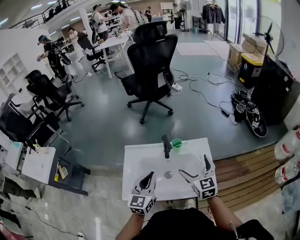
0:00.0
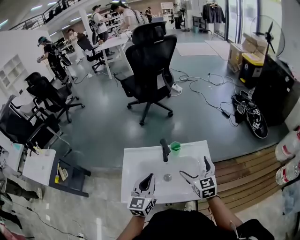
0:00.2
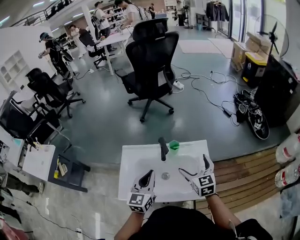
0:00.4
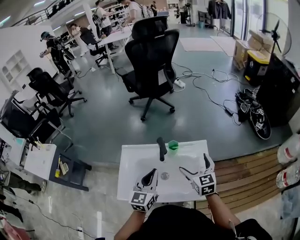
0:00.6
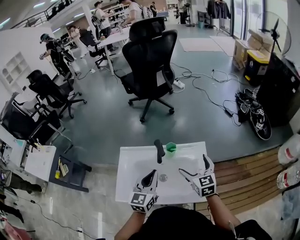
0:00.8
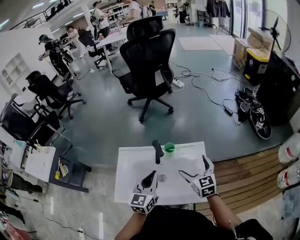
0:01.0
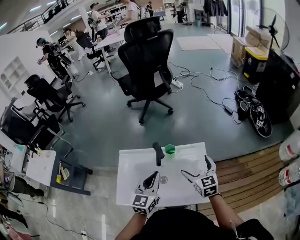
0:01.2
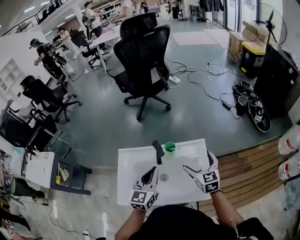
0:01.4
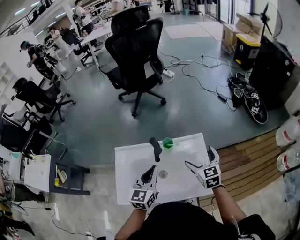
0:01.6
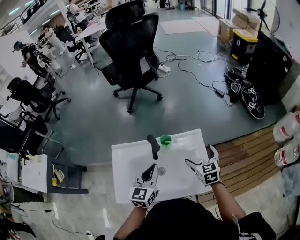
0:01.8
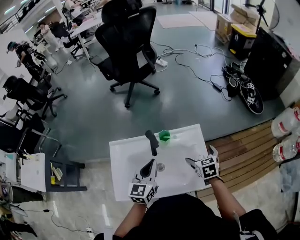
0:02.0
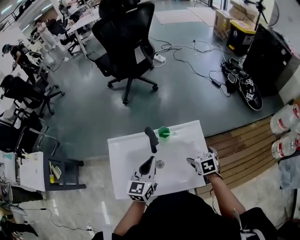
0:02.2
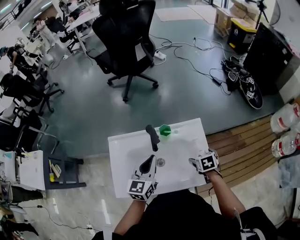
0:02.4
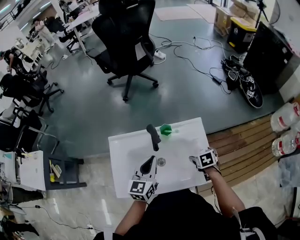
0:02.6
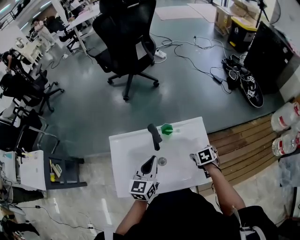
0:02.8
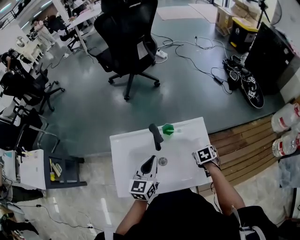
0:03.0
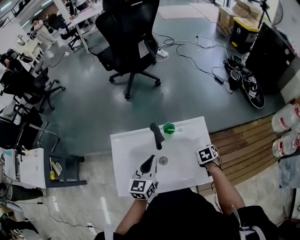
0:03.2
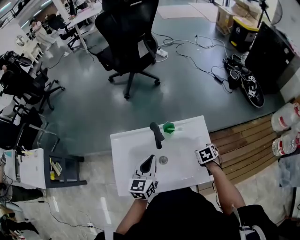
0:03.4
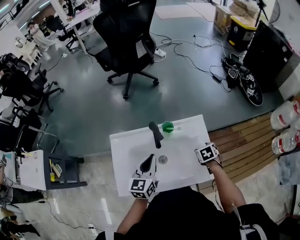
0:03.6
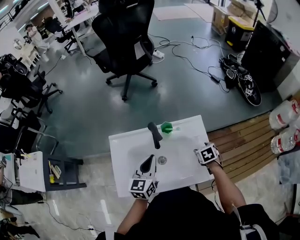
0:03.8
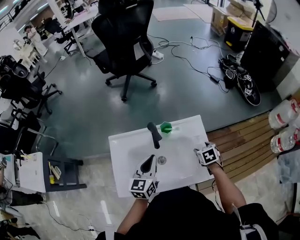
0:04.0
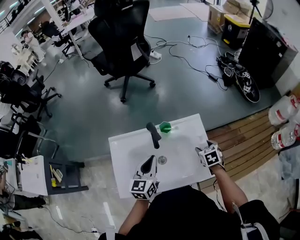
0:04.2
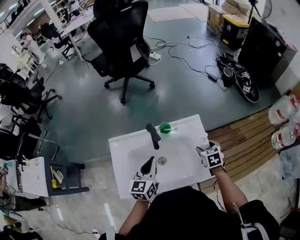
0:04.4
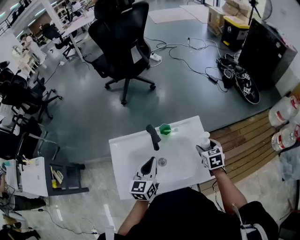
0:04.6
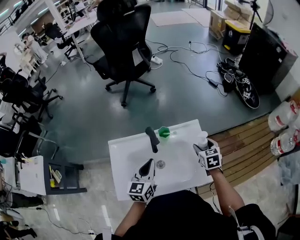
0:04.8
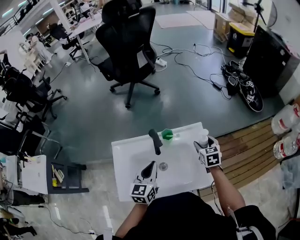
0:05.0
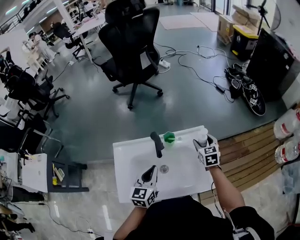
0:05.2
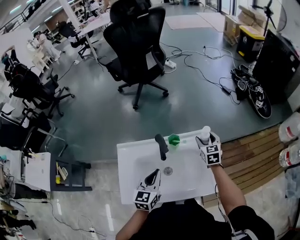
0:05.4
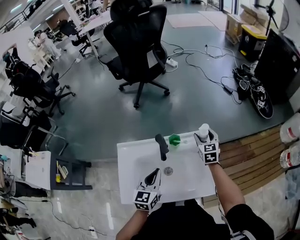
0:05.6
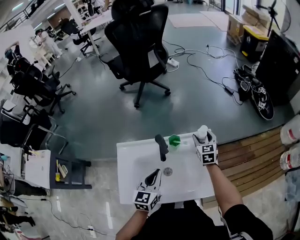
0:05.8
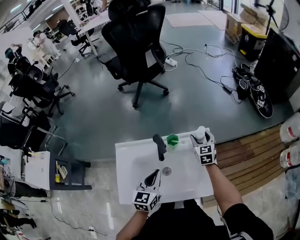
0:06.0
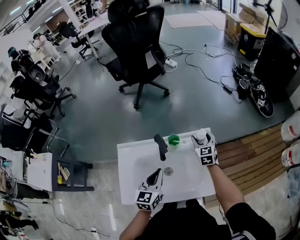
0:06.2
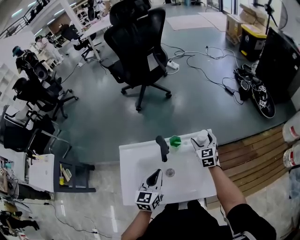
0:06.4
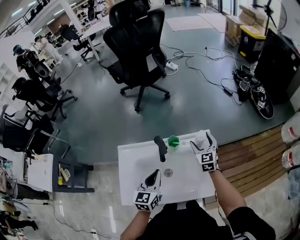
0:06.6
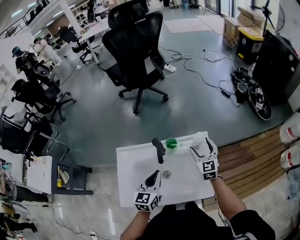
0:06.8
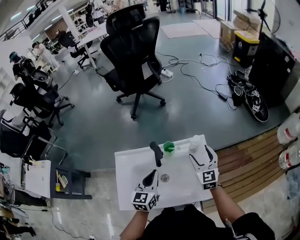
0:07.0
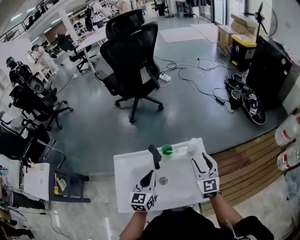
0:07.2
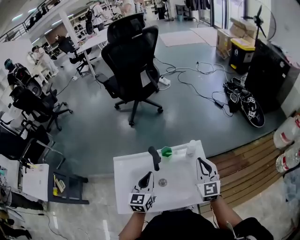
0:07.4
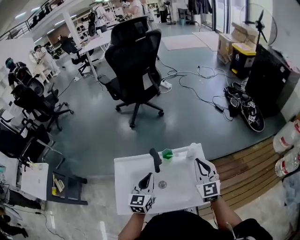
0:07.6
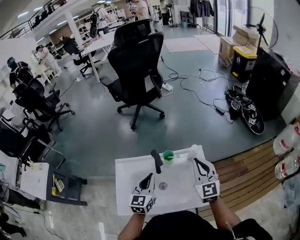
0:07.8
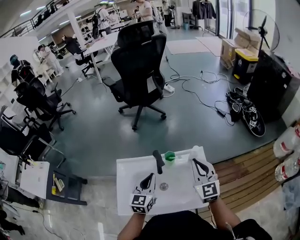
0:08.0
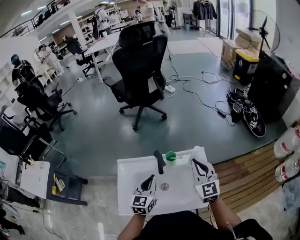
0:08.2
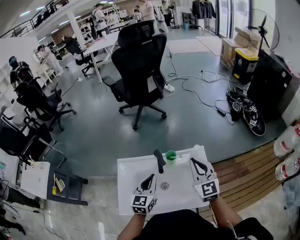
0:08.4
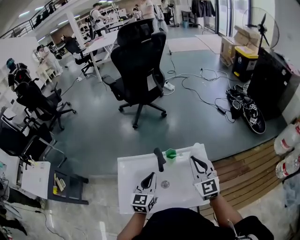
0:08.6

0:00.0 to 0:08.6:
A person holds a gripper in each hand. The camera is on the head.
0:00.0 to 0:01.4: The right gripper travels to the right and forward by roughly 10 cm. The left gripper heads forward and to the right, covering some 10 cm.
0:01.4 to 0:02.8: The right gripper goes some 20 cm downward, and points its fingers roughly 40 degrees further downward. The left gripper moves downward, about 10 cm.
0:02.8 to 0:04.4: The right gripper shifts some 5 cm upward.
0:04.4 to 0:05.8: The right gripper heads forward, covering some 15 cm, and changes its angle by roughly 30 degrees.
0:05.8 to 0:07.2: The right gripper shifts approximately 20 cm backward and upward.
0:07.2 to 0:08.6: The right gripper shifts some 10 cm upward and to the left, and closes its fingers.

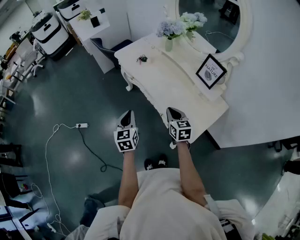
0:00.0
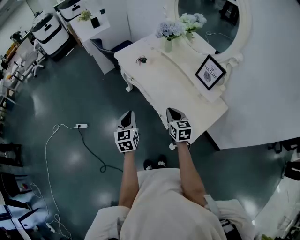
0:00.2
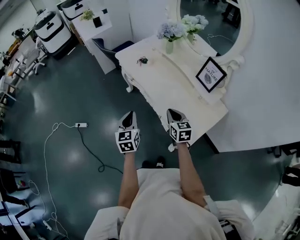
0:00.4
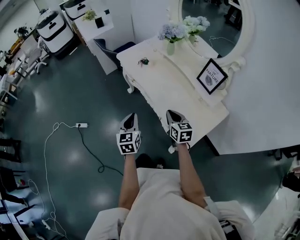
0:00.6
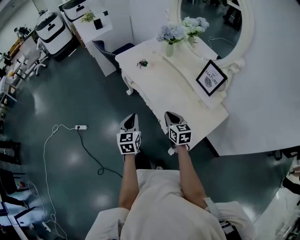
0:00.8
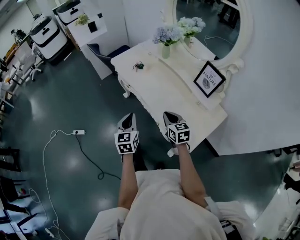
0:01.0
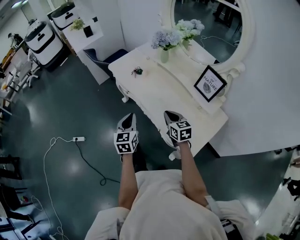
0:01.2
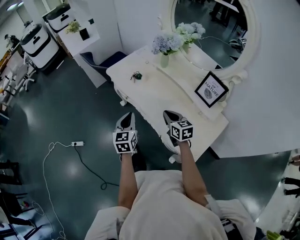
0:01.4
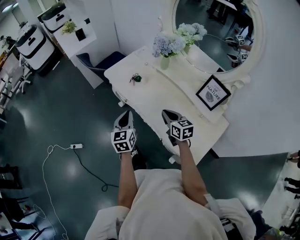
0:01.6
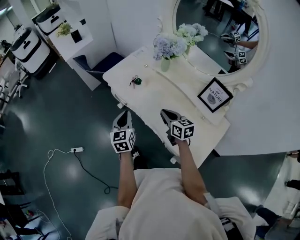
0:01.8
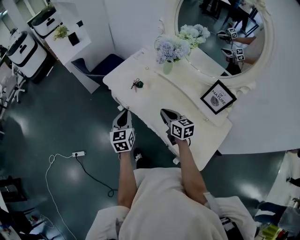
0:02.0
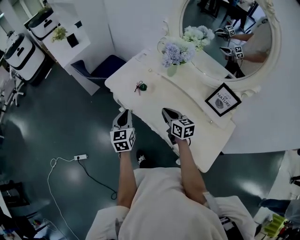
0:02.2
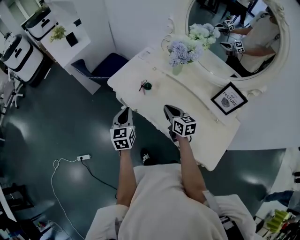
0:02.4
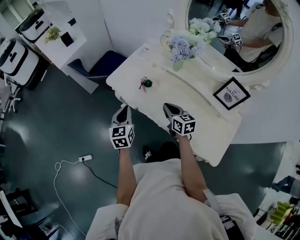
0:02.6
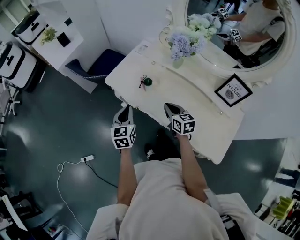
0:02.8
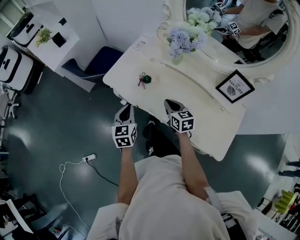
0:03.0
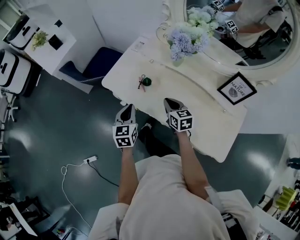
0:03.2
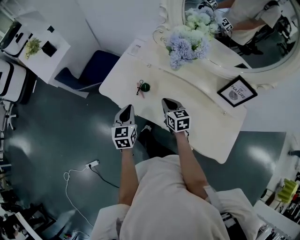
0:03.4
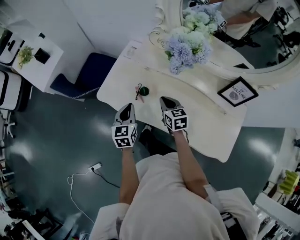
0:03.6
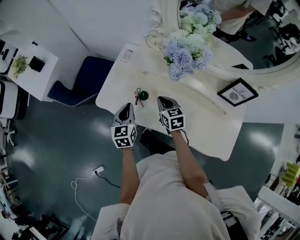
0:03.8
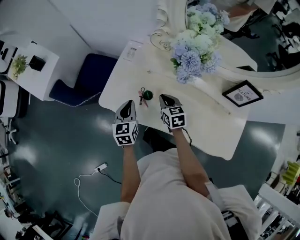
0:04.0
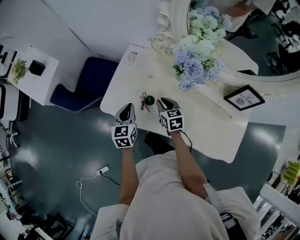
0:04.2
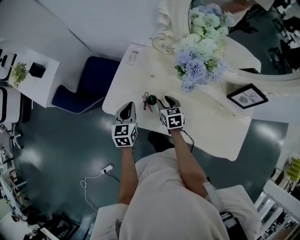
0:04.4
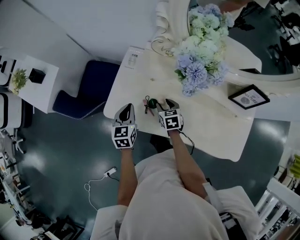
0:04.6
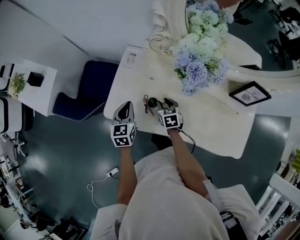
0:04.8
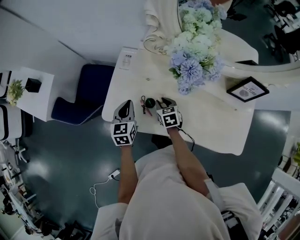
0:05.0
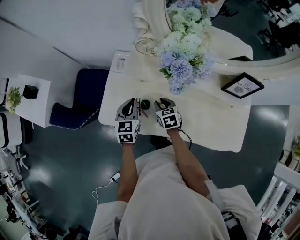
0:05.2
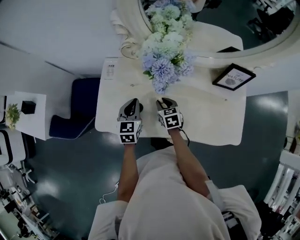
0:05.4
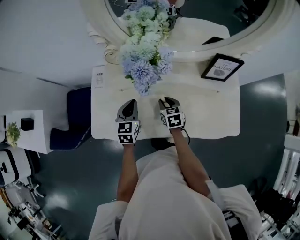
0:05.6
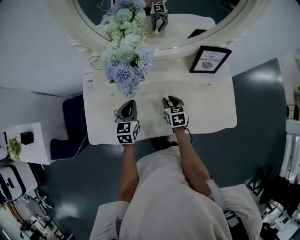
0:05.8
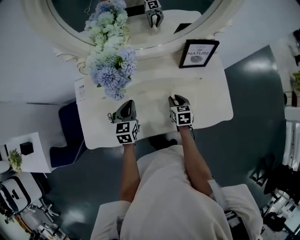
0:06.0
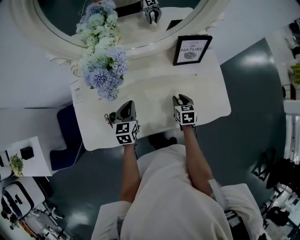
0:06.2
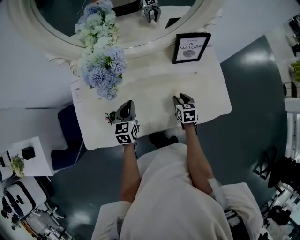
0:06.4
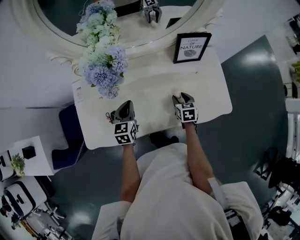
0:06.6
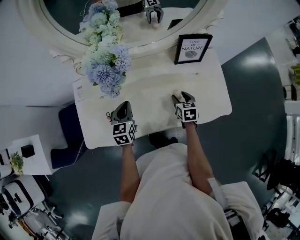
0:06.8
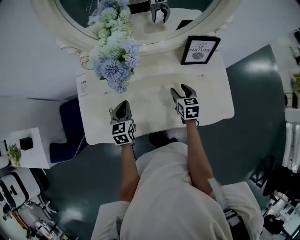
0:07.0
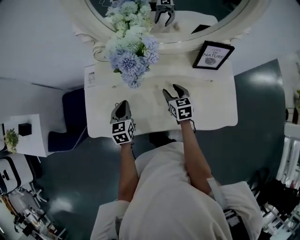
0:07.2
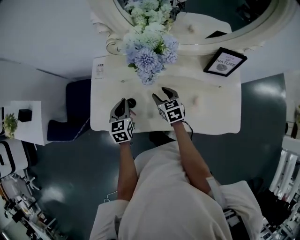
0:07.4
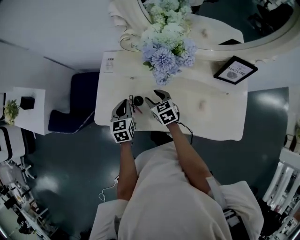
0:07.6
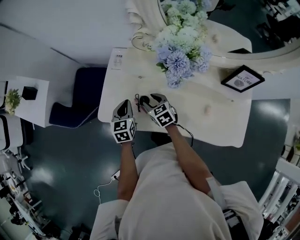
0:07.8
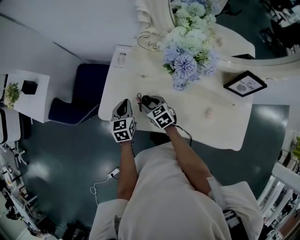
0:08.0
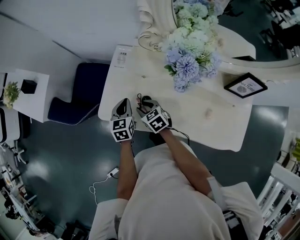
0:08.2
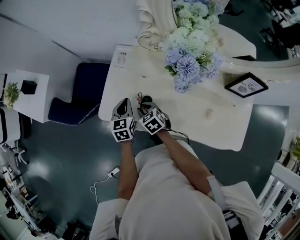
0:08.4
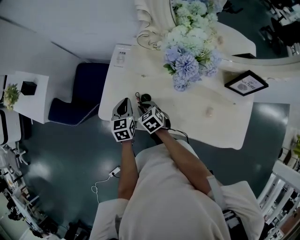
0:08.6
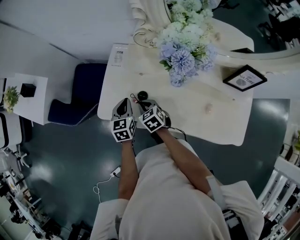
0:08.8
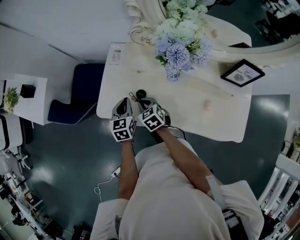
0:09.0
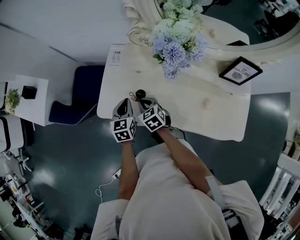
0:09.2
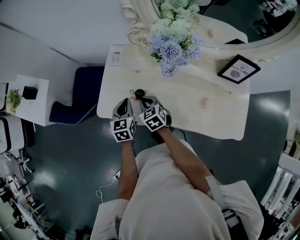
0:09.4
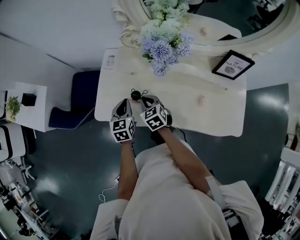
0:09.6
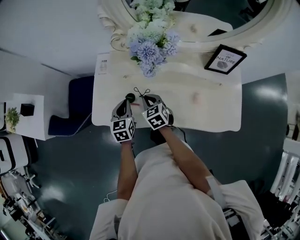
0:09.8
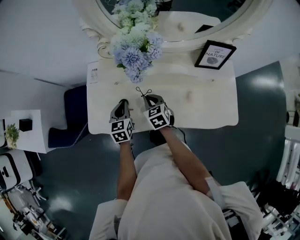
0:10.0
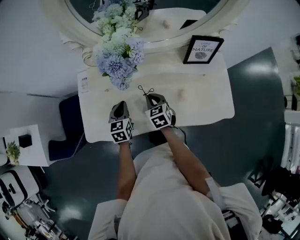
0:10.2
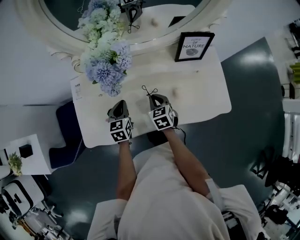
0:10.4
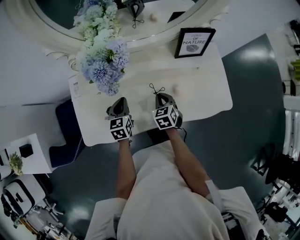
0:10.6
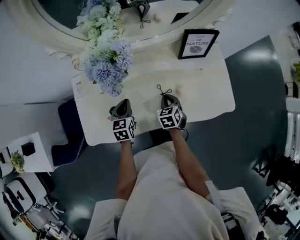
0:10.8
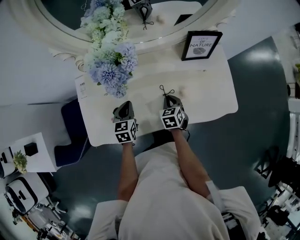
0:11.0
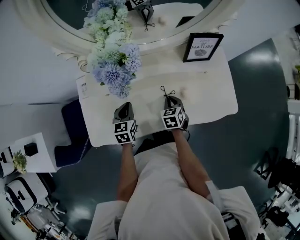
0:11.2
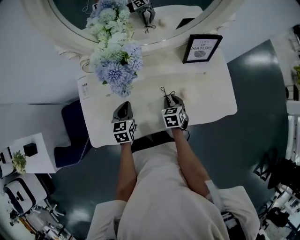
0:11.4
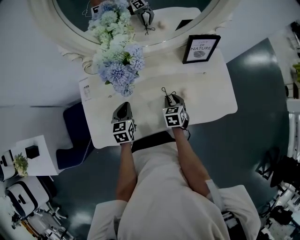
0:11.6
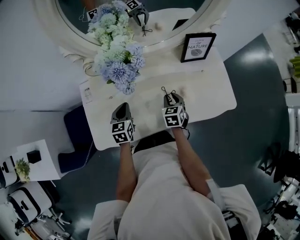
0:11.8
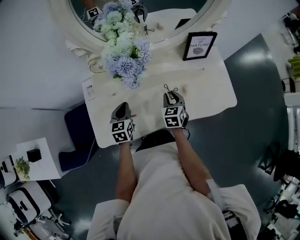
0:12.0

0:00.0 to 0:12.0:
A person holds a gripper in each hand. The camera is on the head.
0:00.0 to 0:01.6: Both grippers travel together forward, roughly 20 cm.
0:01.6 to 0:03.0: The left gripper goes some 20 cm forward and to the left. Meanwhile the right gripper is displaced forward, to the left and downward by some 20 cm.
0:03.0 to 0:04.4: The left gripper is displaced forward by approximately 20 cm; the right gripper heads forward and downward, covering about 20 cm, and opens.
0:04.4 to 0:06.0: The right gripper moves roughly 30 cm, and rotates roughly 40 degrees, while the left gripper moves about 25 cm, and changes its angle by some 30 degrees.
0:06.0 to 0:07.6: The right gripper moves approximately 30 cm, changes its angle by roughly 40 degrees, and opens its fingers; the left gripper moves some 20 cm, and turns by roughly 20 degrees.
0:07.6 to 0:09.0: The right gripper is displaced to the left by approximately 10 cm, and closes its fingers.
0:09.0 to 0:10.4: The right gripper changes place by approximately 25 cm, and swivels about 40 degrees. The left gripper ends up about 20 cm from where it was, and turns by about 20 degrees.
0:10.4 to 0:12.0: The right gripper opens, while the left gripper travels to the left by about 5 cm.

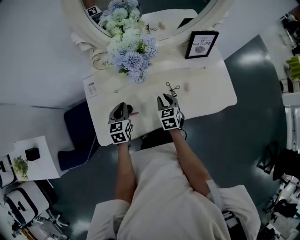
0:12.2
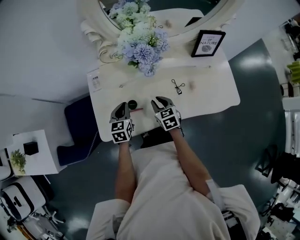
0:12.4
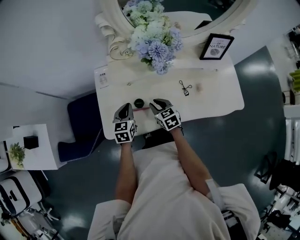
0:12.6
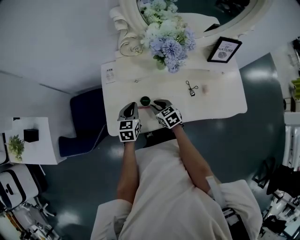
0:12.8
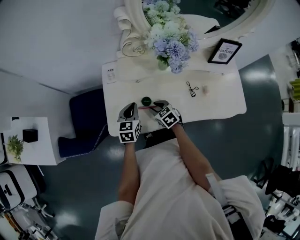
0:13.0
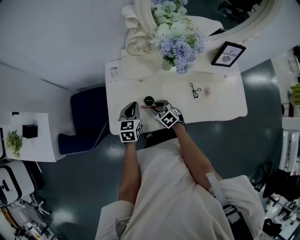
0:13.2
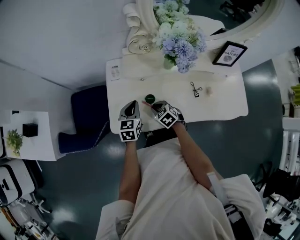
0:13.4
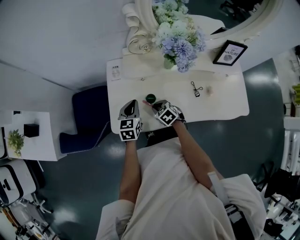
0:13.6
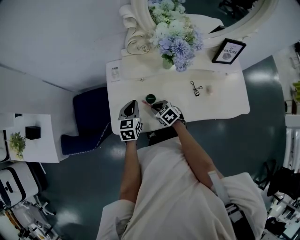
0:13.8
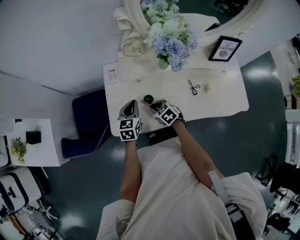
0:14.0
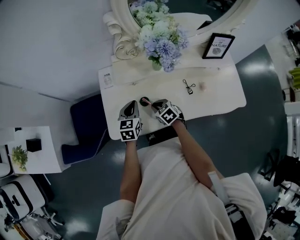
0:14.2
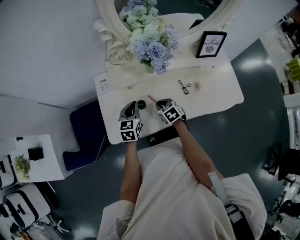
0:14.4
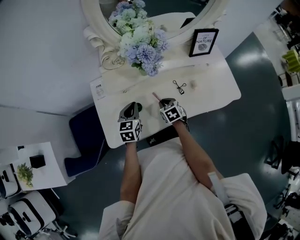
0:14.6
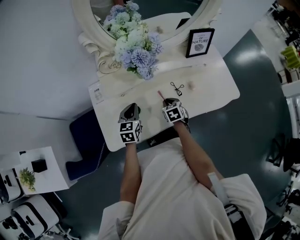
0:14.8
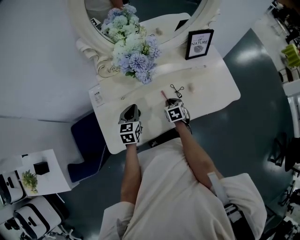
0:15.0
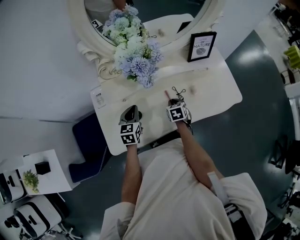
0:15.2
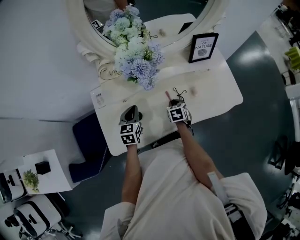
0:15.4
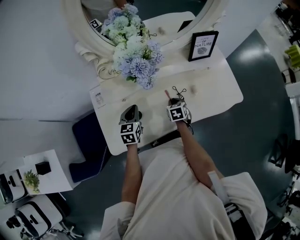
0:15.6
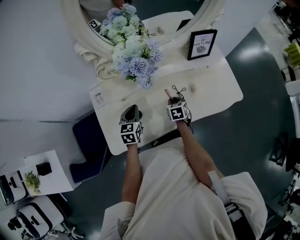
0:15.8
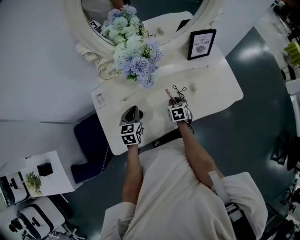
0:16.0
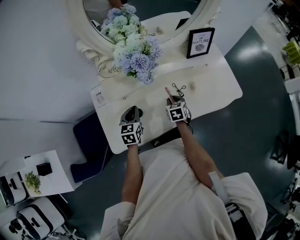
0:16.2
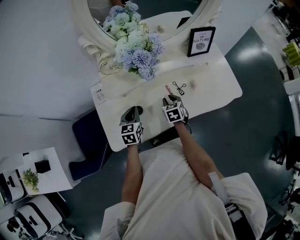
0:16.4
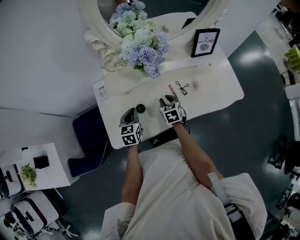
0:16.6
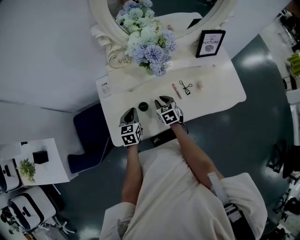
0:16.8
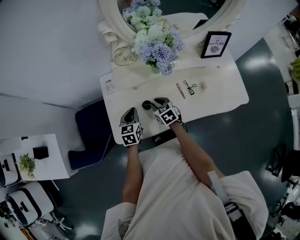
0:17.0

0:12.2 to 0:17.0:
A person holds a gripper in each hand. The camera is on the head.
0:12.2 to 0:13.8: The left gripper shifts by some 10 cm. The right gripper changes place by roughly 25 cm, and rotates some 40 degrees.
0:13.8 to 0:15.4: The left gripper shifts by some 10 cm; the right gripper shifts by approximately 25 cm, and changes its angle by approximately 50 degrees.
0:15.4 to 0:17.0: The right gripper is displaced to the left by some 20 cm, and changes its angle by roughly 30 degrees. The left gripper moves to the left and backward, approximately 10 cm.
